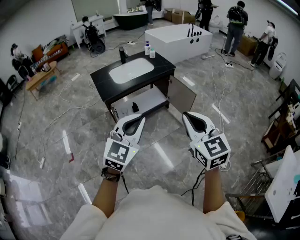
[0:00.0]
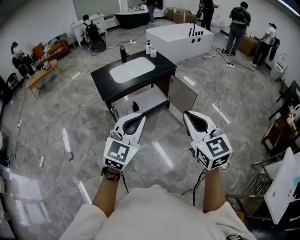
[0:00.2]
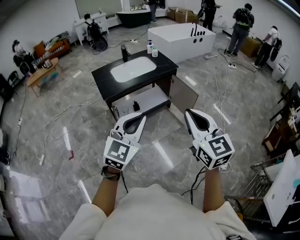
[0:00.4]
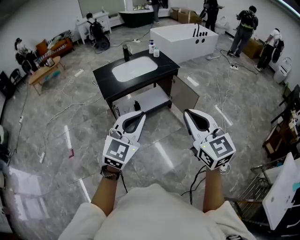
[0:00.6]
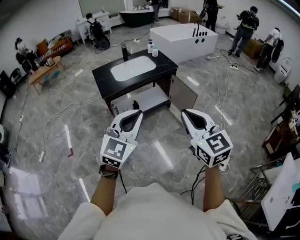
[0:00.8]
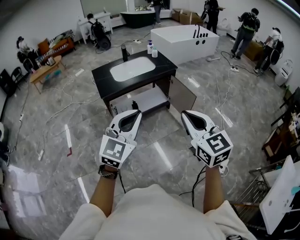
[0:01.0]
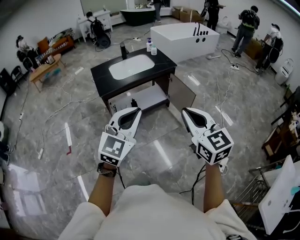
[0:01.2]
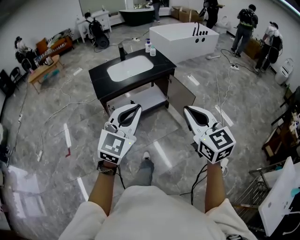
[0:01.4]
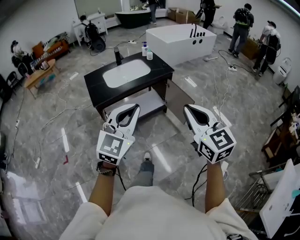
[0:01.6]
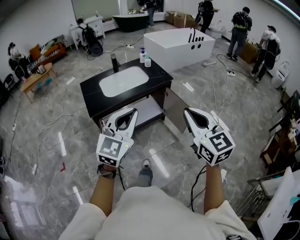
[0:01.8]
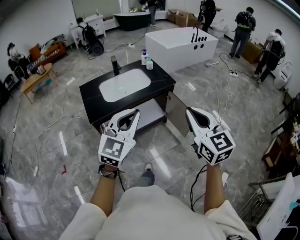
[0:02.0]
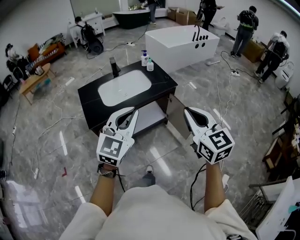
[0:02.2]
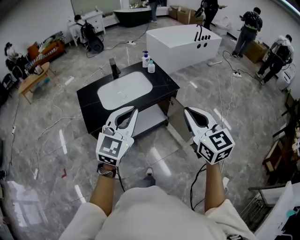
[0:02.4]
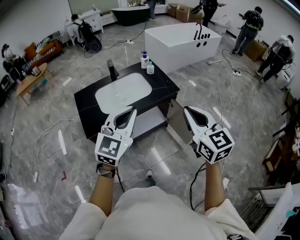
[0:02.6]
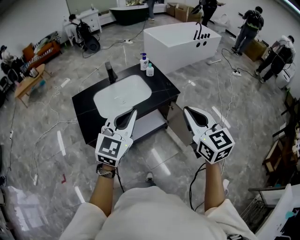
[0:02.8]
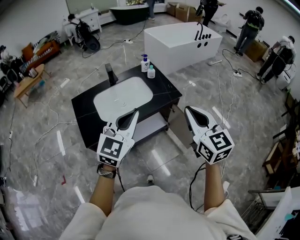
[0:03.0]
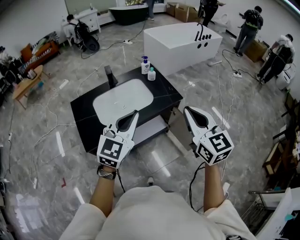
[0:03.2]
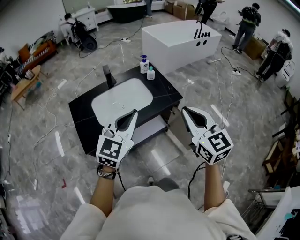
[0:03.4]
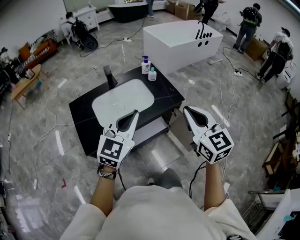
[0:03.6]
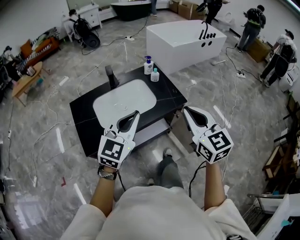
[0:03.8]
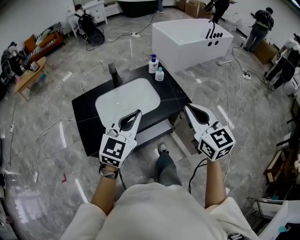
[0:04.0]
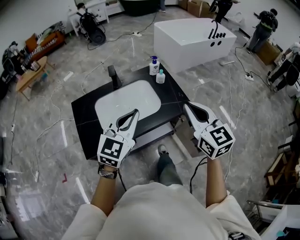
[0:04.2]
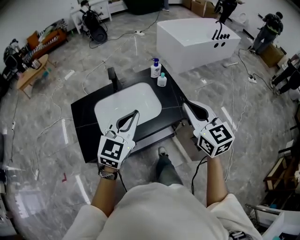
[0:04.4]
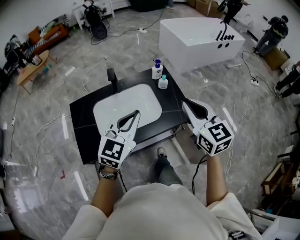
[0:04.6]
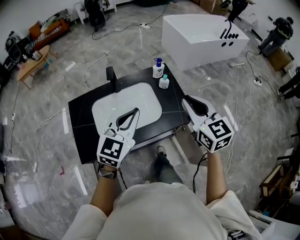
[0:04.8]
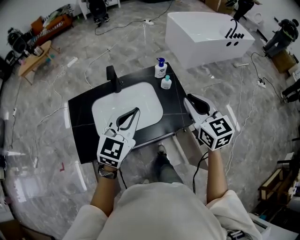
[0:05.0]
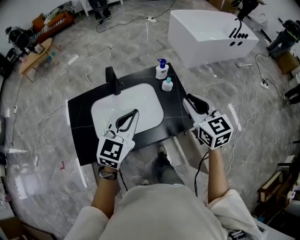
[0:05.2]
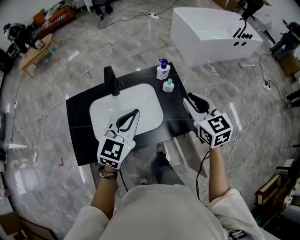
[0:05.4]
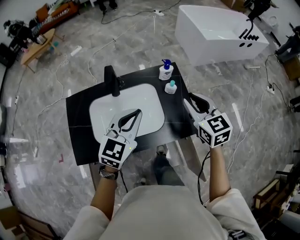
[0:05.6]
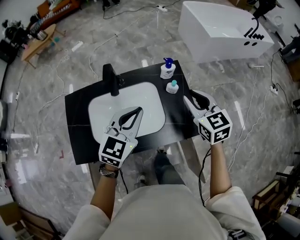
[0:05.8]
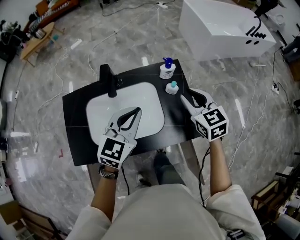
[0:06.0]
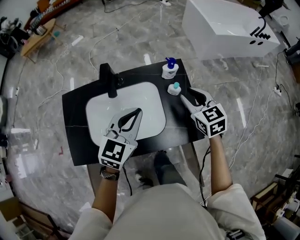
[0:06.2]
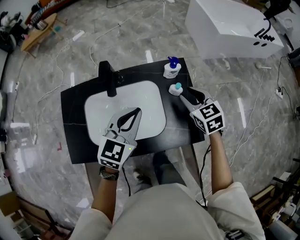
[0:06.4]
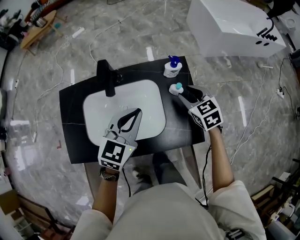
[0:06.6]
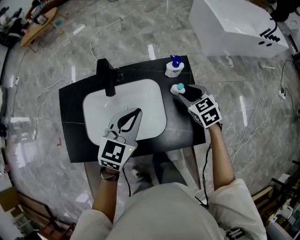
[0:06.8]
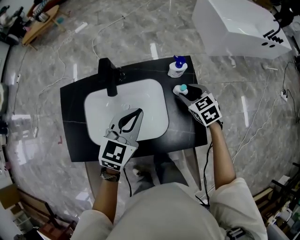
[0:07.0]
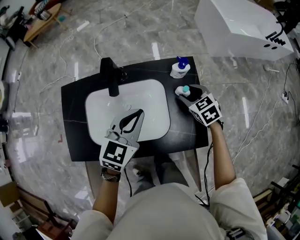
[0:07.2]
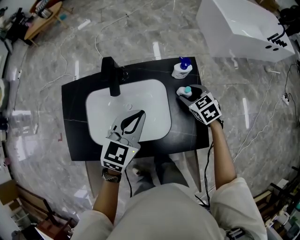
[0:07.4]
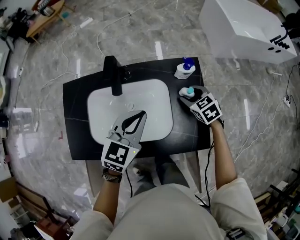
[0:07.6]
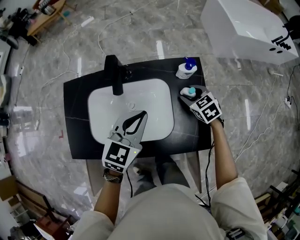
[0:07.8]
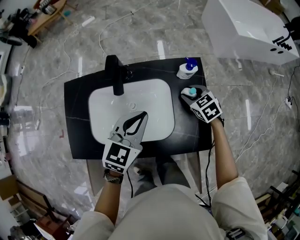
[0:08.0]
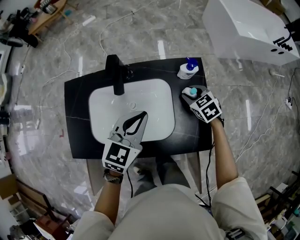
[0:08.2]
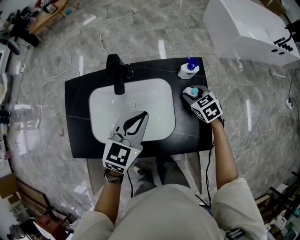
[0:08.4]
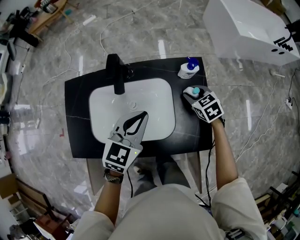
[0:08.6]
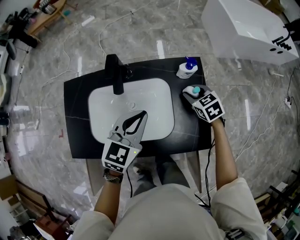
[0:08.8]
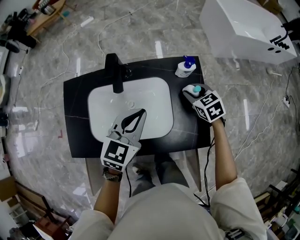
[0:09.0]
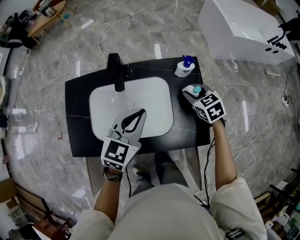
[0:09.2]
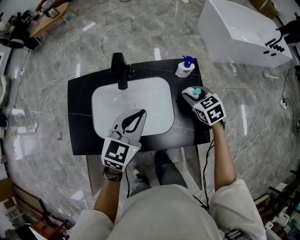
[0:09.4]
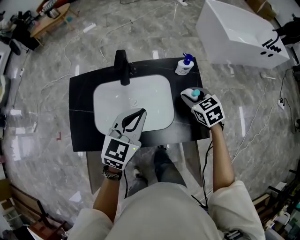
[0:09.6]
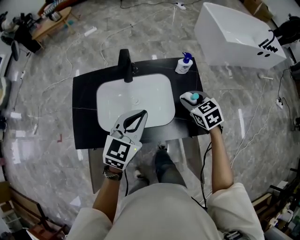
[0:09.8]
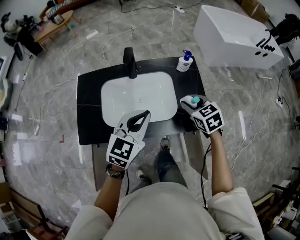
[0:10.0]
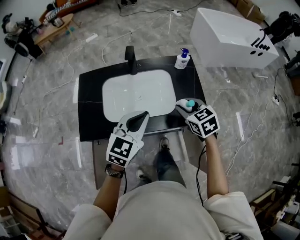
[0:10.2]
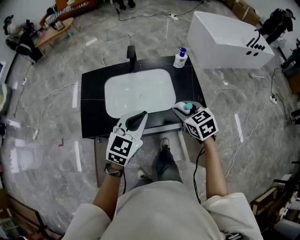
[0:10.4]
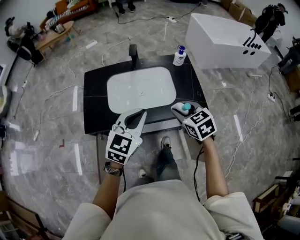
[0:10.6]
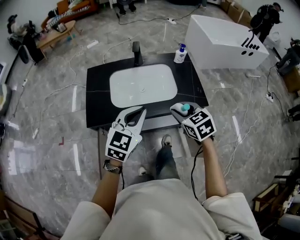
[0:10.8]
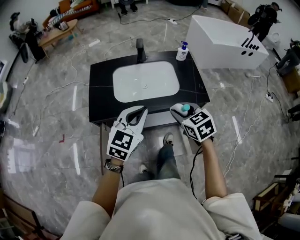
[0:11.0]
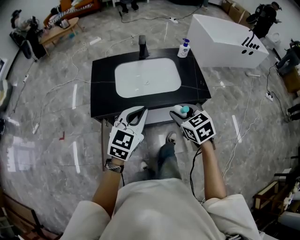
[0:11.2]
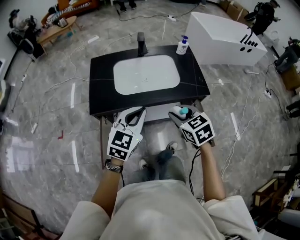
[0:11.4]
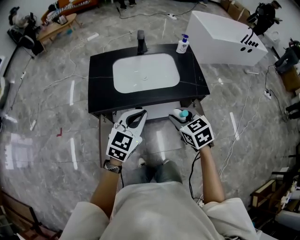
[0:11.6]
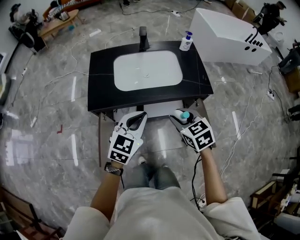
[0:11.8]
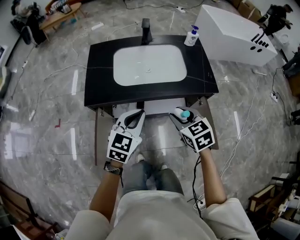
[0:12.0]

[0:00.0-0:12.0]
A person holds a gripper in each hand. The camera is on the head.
0:00.0 to 0:01.6: The right gripper heads forward and to the right, covering some 15 cm. The left gripper travels forward by roughly 15 cm.
0:01.6 to 0:03.0: The grippers both shift forward by roughly 40 cm.
0:03.0 to 0:04.4: The grippers both shift forward by approximately 20 cm.
0:04.4 to 0:06.0: The two grippers go roughly 30 cm forward and downward. The right gripper turns by about 20 degrees, and opens its fingers.
0:06.0 to 0:07.6: The left gripper goes roughly 5 cm downward. Meanwhile the right gripper travels downward and forward by approximately 20 cm, changes its angle by about 30 degrees, and opens.
0:07.6 to 0:09.0: There are only small adjustments of the grippers.
0:09.0 to 0:10.4: The right gripper goes approximately 30 cm backward and upward. The left gripper heads backward, covering roughly 20 cm.
0:10.4 to 0:12.0: The left gripper moves backward, downward and to the left, roughly 20 cm, while the right gripper moves backward and to the left, approximately 20 cm.

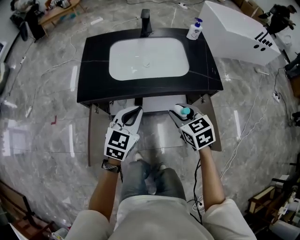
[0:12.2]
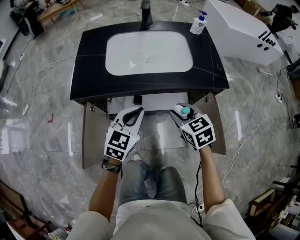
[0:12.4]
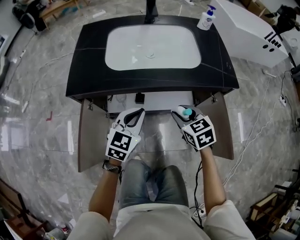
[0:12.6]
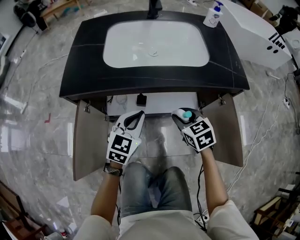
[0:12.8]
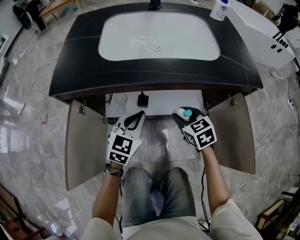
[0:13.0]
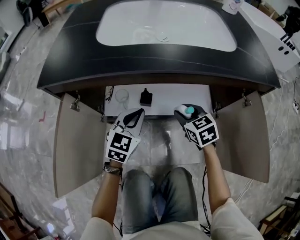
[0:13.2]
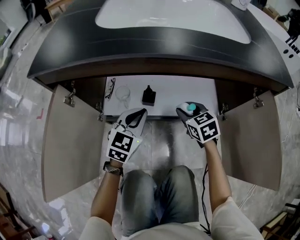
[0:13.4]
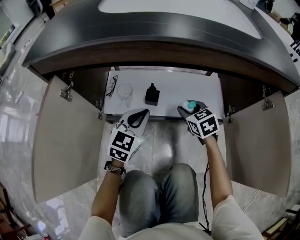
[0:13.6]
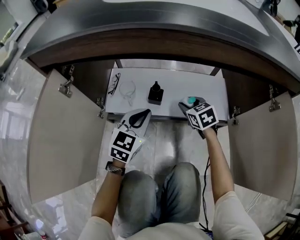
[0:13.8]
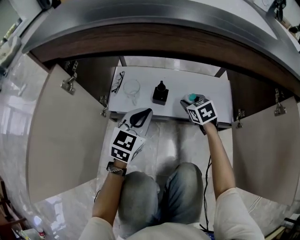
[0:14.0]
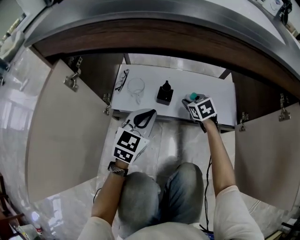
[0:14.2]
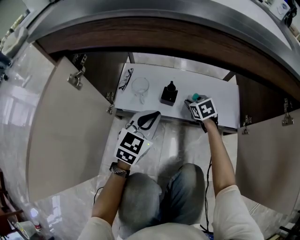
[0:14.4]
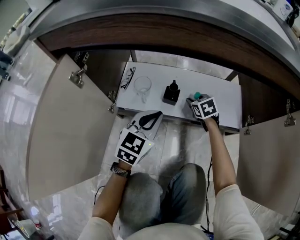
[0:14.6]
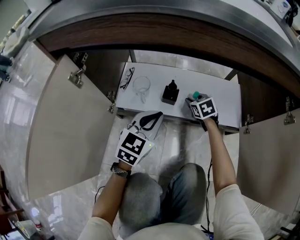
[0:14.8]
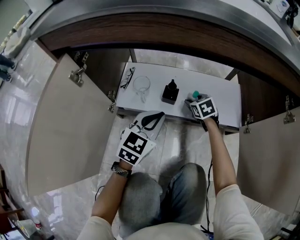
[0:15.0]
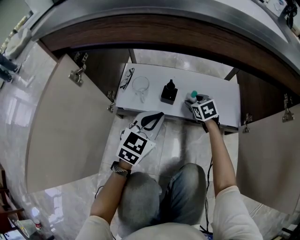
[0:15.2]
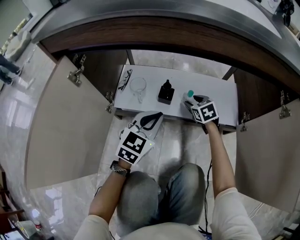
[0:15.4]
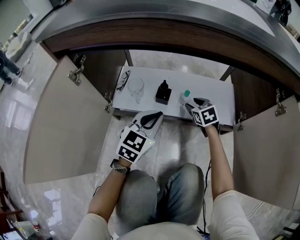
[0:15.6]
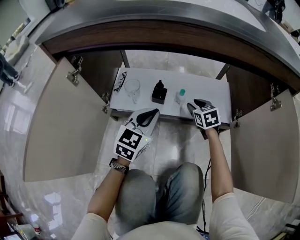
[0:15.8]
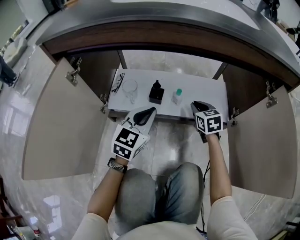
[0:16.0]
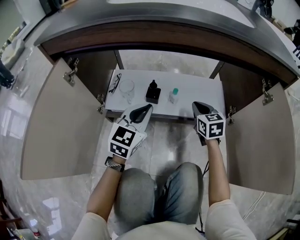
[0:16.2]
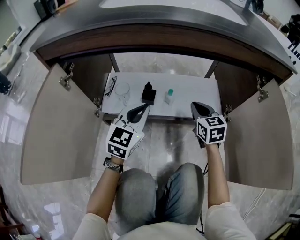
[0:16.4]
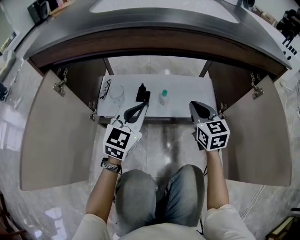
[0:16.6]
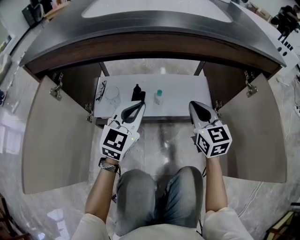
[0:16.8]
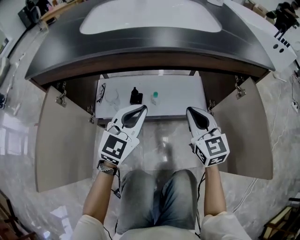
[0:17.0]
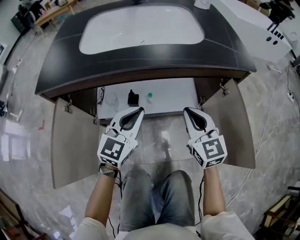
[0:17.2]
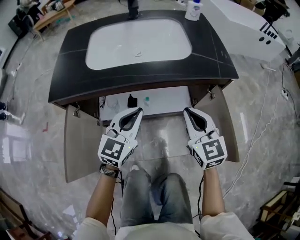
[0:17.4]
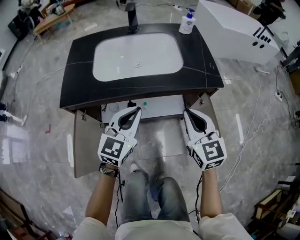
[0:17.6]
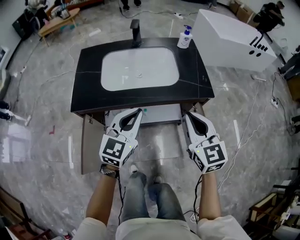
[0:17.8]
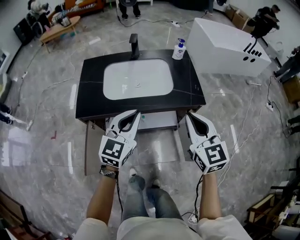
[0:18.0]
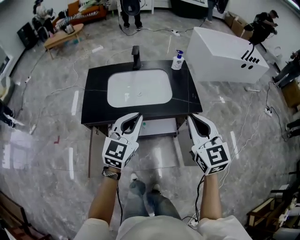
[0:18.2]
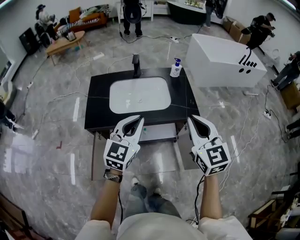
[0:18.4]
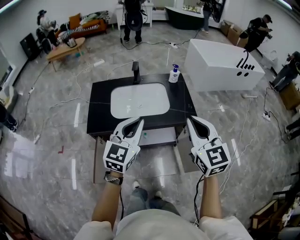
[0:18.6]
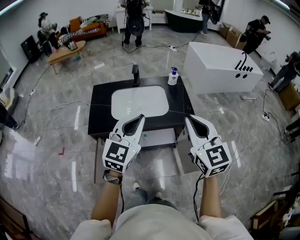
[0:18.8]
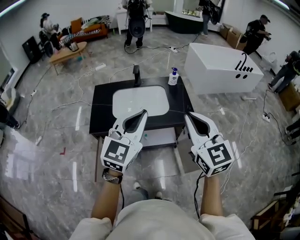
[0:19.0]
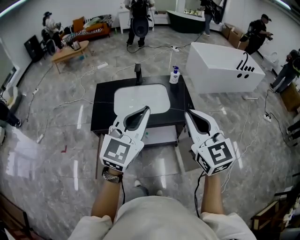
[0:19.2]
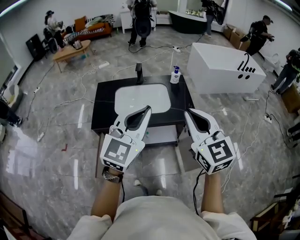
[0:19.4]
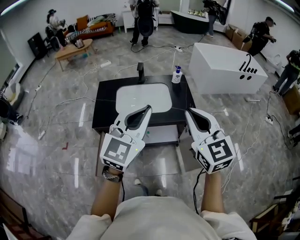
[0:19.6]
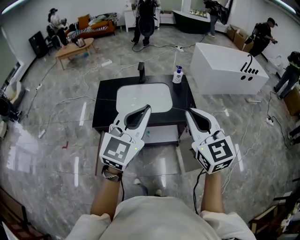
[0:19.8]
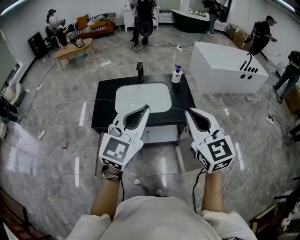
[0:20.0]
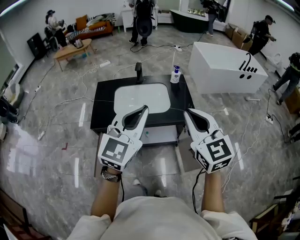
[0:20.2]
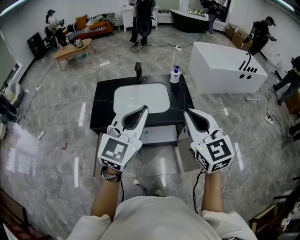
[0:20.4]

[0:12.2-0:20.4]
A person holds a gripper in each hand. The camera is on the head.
0:12.2 to 0:13.8: Both grippers move downward, roughly 50 cm.
0:13.8 to 0:15.4: The right gripper shifts roughly 5 cm downward.
0:15.4 to 0:17.2: The right gripper heads upward and backward, covering some 40 cm, points its fingers roughly 30 degrees further upward, and closes up, while the left gripper shifts roughly 25 cm upward.
0:17.2 to 0:18.8: The two grippers go roughly 60 cm upward.
0:18.8 to 0:20.4: The left gripper goes roughly 5 cm upward.

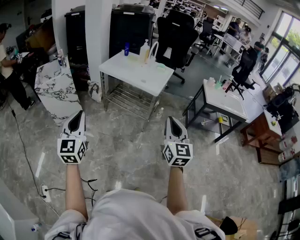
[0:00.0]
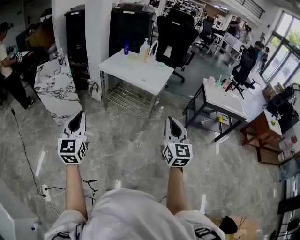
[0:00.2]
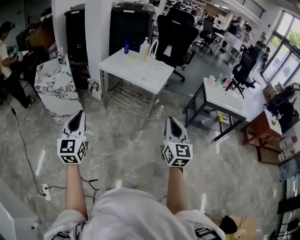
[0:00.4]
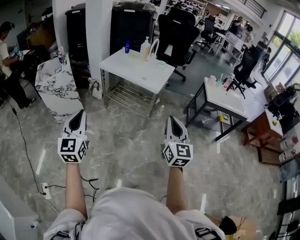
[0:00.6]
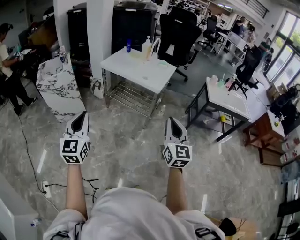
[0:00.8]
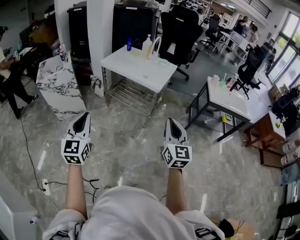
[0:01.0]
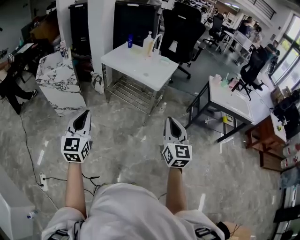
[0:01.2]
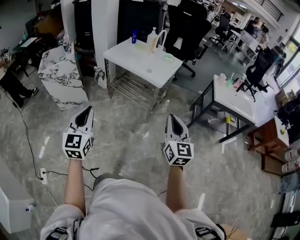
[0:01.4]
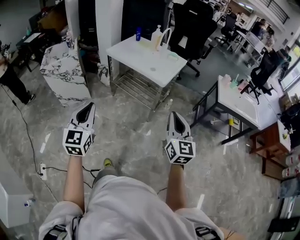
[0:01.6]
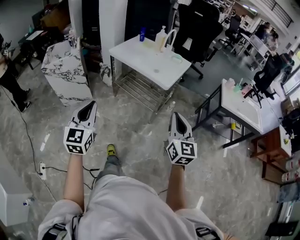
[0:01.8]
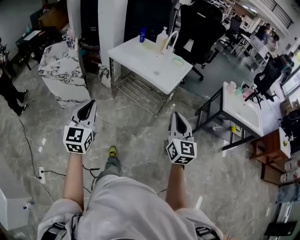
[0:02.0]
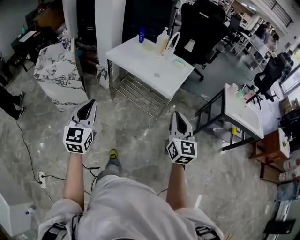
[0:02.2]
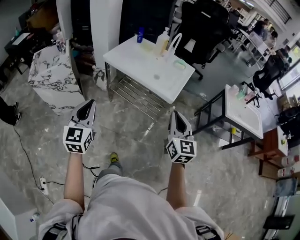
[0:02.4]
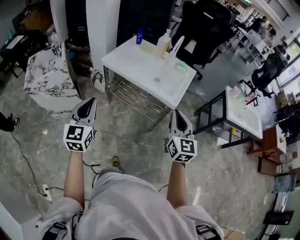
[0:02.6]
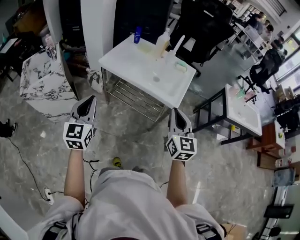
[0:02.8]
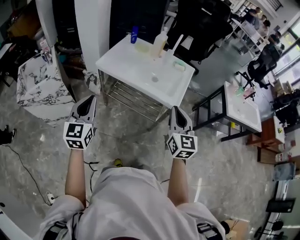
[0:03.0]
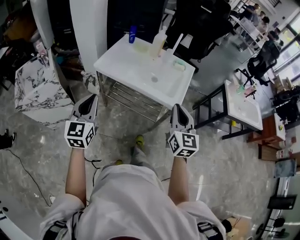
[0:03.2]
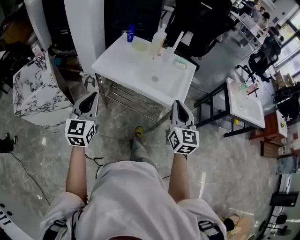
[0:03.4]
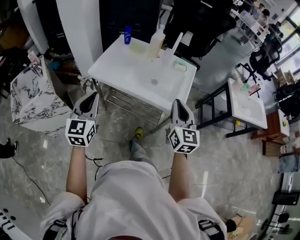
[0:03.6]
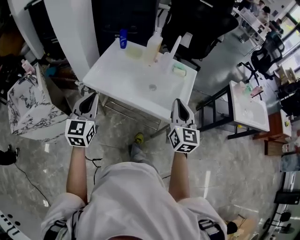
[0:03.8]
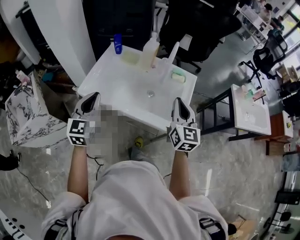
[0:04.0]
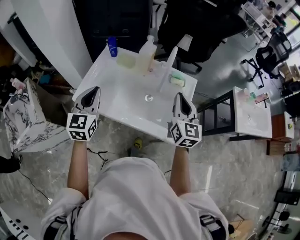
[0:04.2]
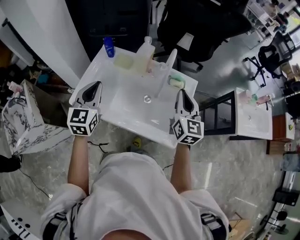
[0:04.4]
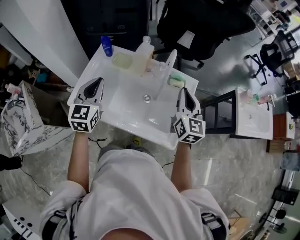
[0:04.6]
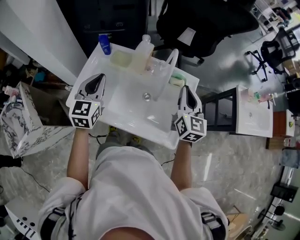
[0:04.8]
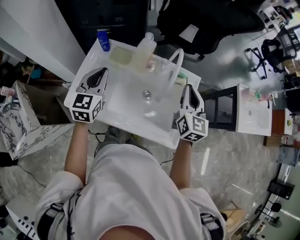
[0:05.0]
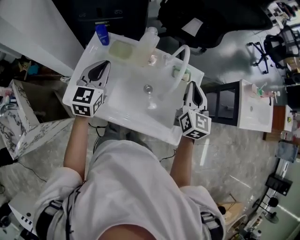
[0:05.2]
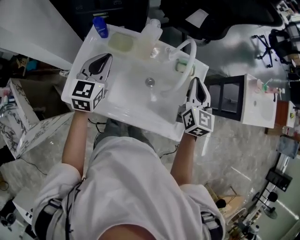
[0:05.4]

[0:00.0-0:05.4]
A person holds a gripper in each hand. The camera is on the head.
0:00.0 to 0:01.4: The right gripper moves to the right and downward, approximately 10 cm; the left gripper travels to the right by roughly 10 cm.
0:01.4 to 0:02.8: The grippers both shift forward by about 40 cm.
0:02.8 to 0:04.0: The two grippers go some 35 cm forward.
0:04.0 to 0:05.4: Both grippers travel together forward, some 25 cm.
